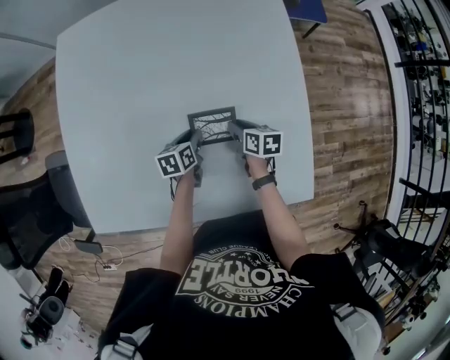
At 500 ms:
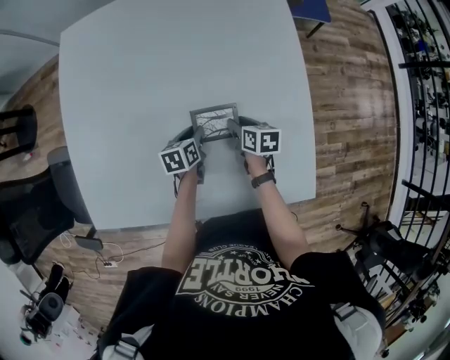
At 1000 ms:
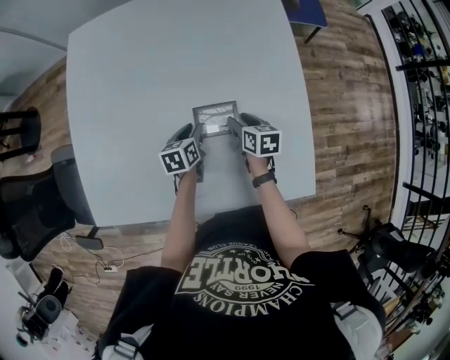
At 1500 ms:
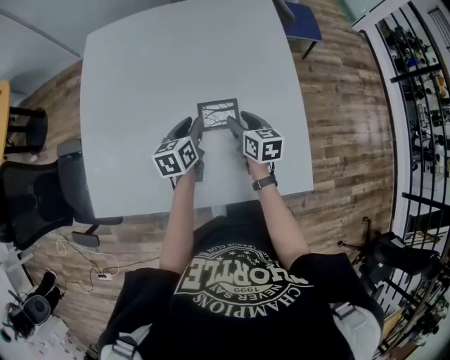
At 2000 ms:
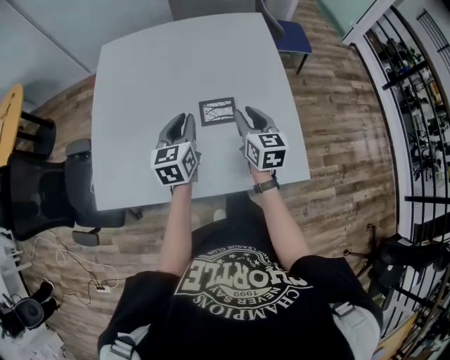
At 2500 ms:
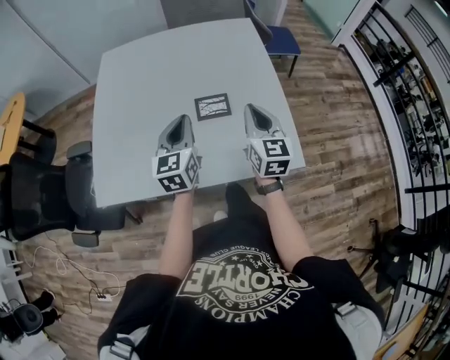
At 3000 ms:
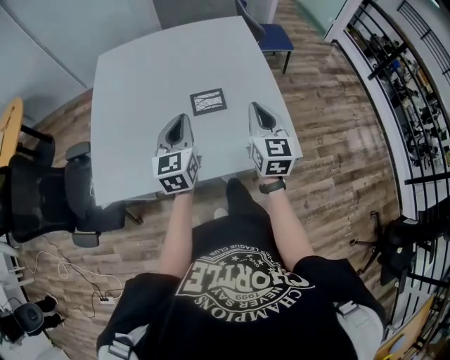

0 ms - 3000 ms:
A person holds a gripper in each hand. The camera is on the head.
0 ms - 1500 ms: Both grippers travel together upward, about 15 cm. The right gripper changes its angle by about 20 degrees, and opens.
1500 ms - 3000 ms: The left gripper goes about 20 cm backward and upward, rotates roughly 30 degrees, and closes up. The right gripper travels upward and backward by roughly 25 cm, rotates roughly 40 degrees, and closes its fingers.

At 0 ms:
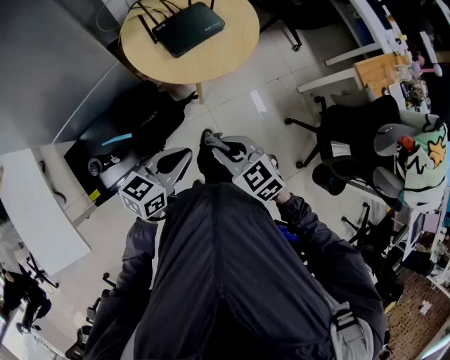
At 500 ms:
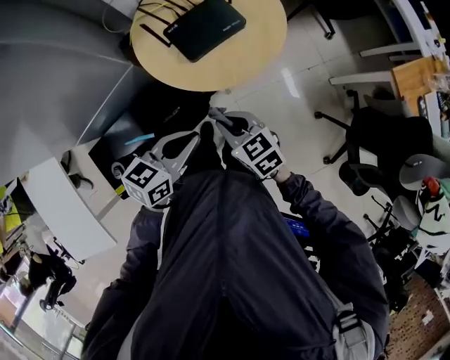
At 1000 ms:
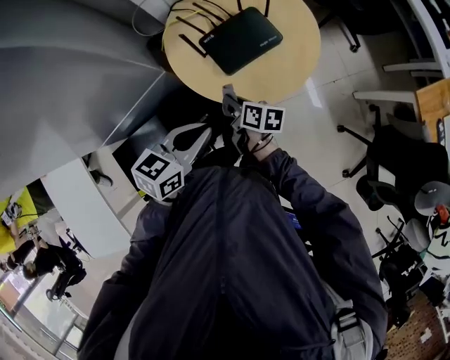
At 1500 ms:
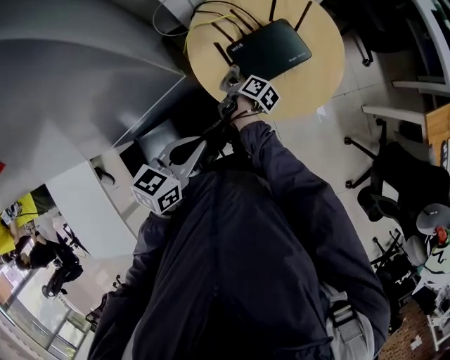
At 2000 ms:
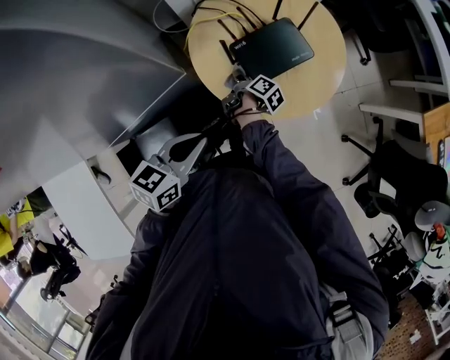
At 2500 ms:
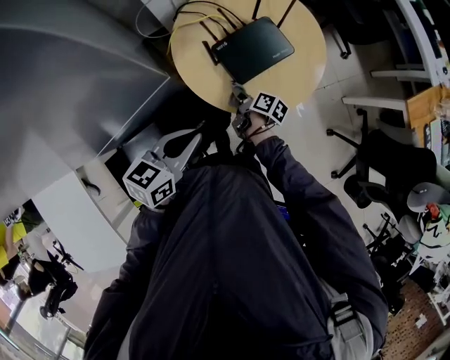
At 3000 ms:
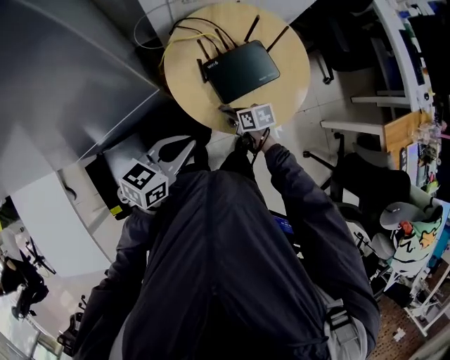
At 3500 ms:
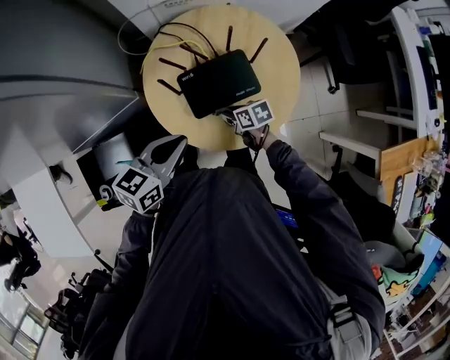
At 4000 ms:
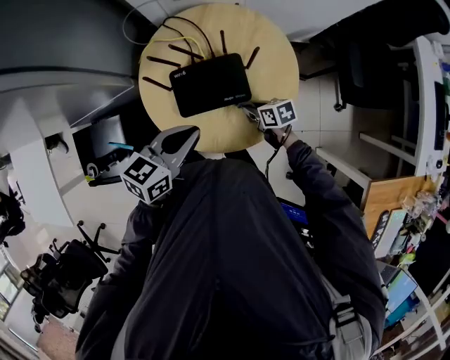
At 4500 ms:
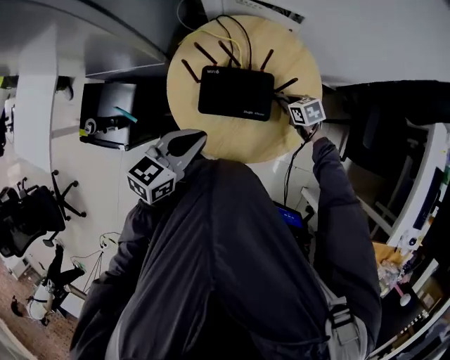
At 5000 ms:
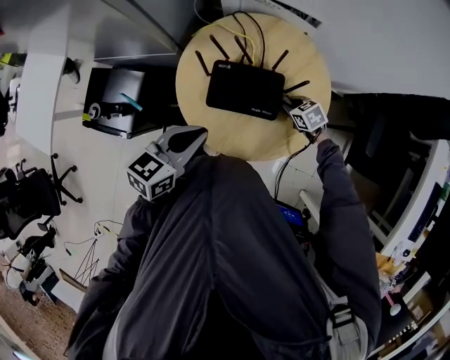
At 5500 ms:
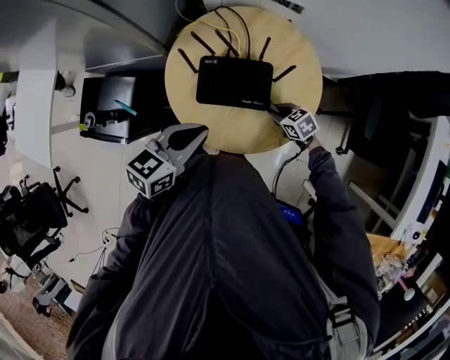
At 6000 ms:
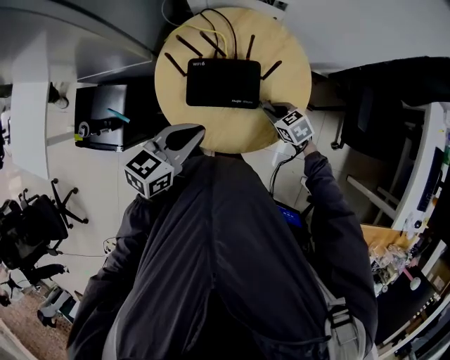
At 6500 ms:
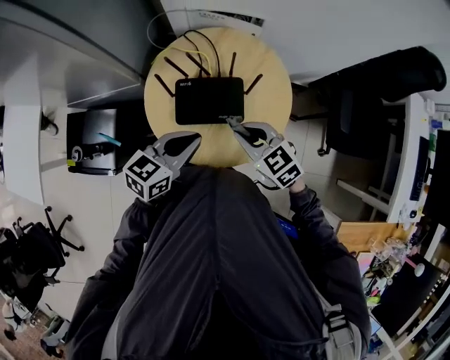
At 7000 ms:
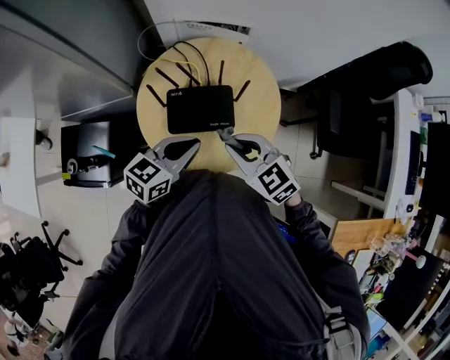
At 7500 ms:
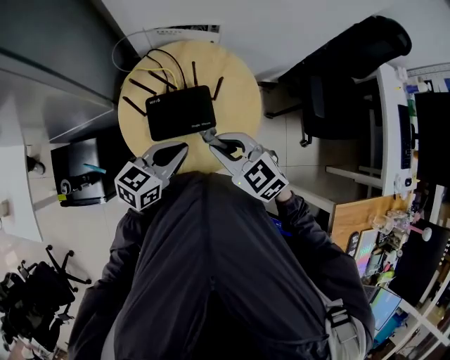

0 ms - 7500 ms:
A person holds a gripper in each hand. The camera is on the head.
0 ms - 2000 ms: The right gripper moves forward, downward and to the left, approximately 50 cm, and twists some 100 degrees clockwise, seen from behind; the left gripper travels forward and to the left by roughly 25 cm.
2000 ms - 4000 ms: The right gripper shifts by approximately 25 cm, and rotates roughly 90 degrees. The left gripper moves about 25 cm.
4000 ms - 5500 ms: The right gripper travels forward and back again, some 10 cm each way, and swivels some 40 degrees.
5500 ms - 7500 ms: The left gripper goes roughly 5 cm to the right; the right gripper travels upward by roughly 25 cm, and turns by about 30 degrees.

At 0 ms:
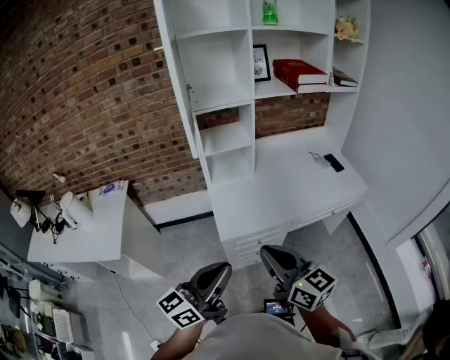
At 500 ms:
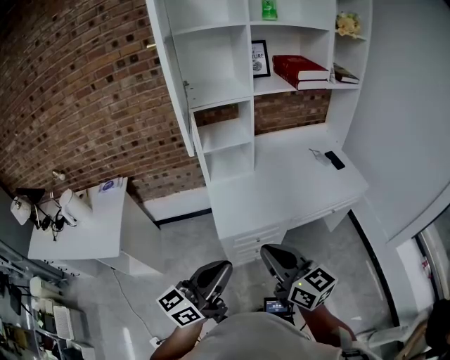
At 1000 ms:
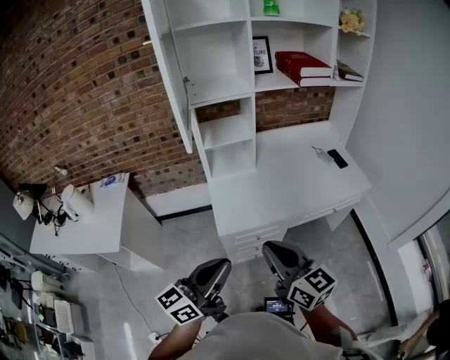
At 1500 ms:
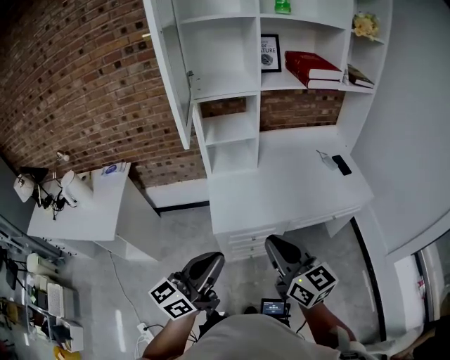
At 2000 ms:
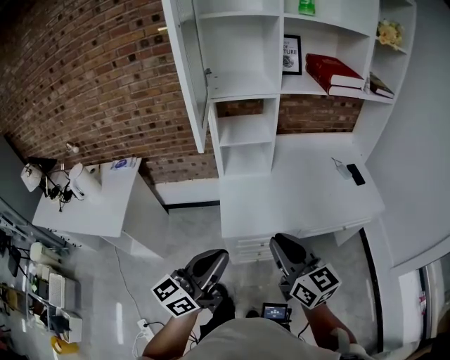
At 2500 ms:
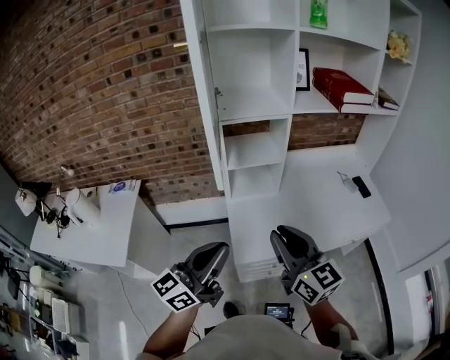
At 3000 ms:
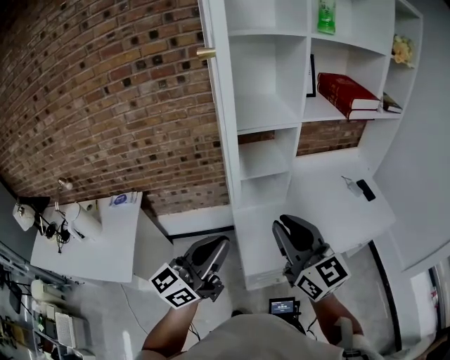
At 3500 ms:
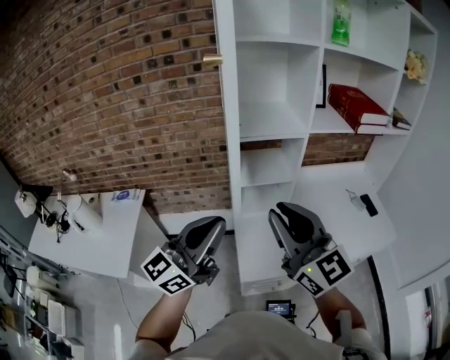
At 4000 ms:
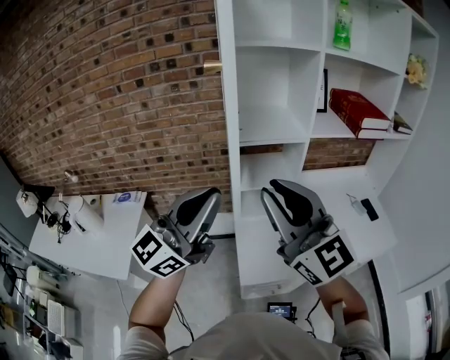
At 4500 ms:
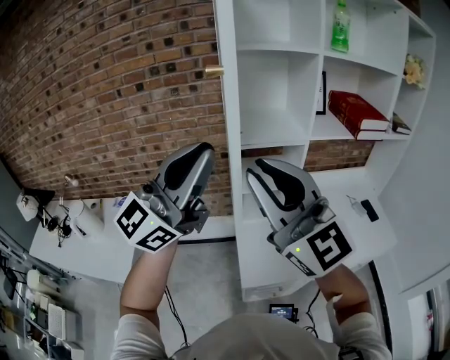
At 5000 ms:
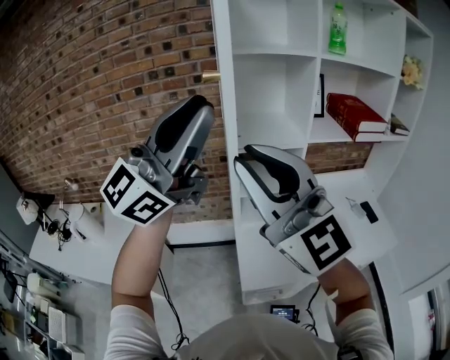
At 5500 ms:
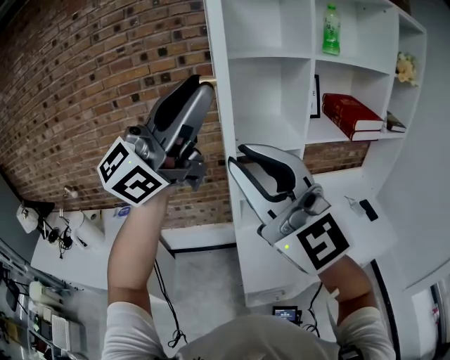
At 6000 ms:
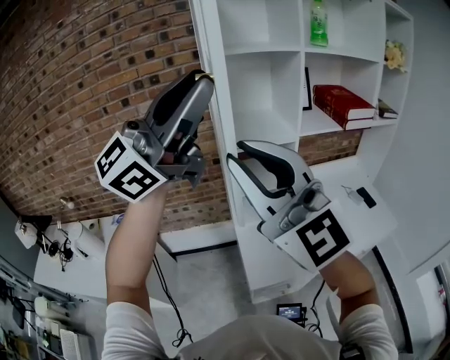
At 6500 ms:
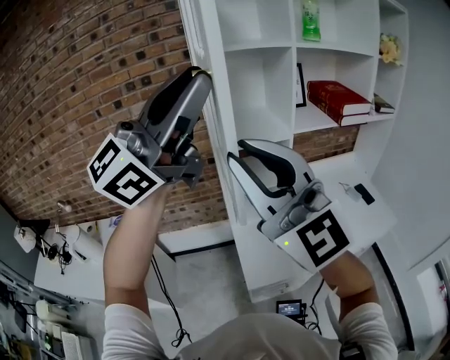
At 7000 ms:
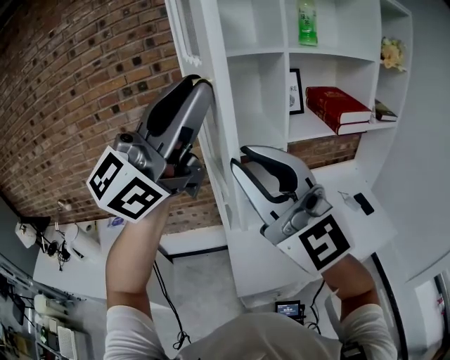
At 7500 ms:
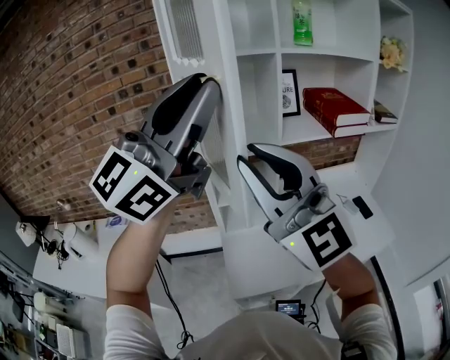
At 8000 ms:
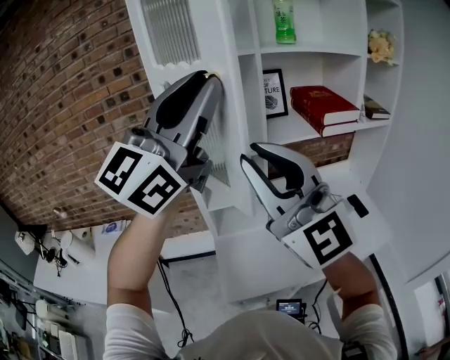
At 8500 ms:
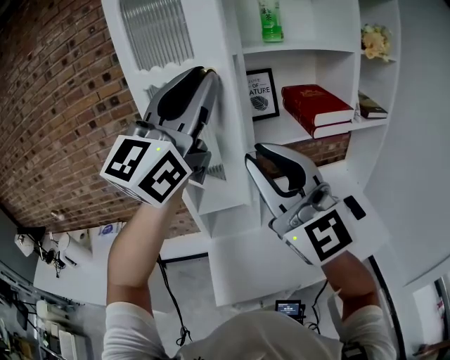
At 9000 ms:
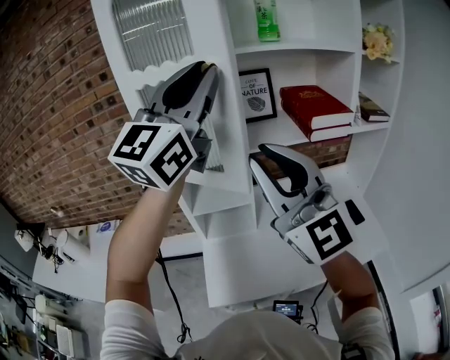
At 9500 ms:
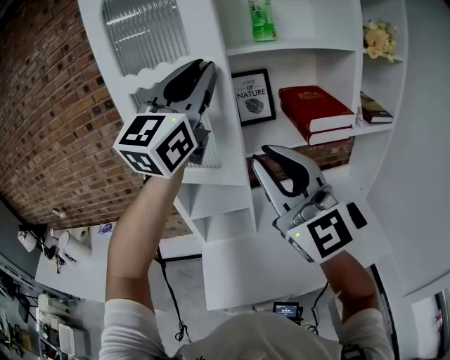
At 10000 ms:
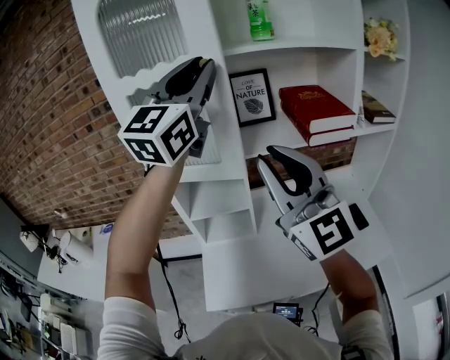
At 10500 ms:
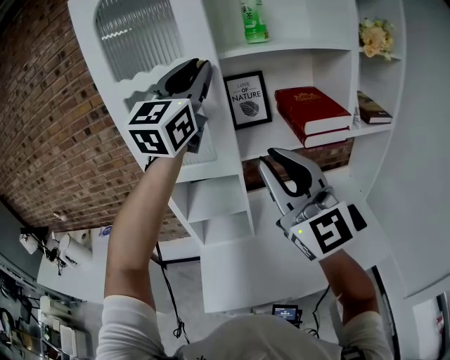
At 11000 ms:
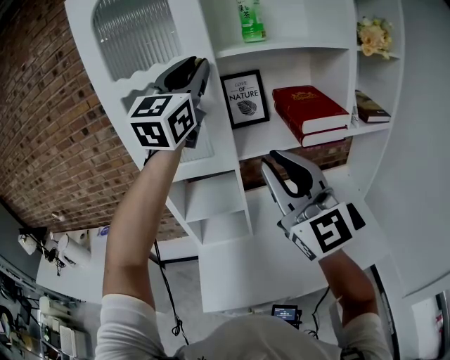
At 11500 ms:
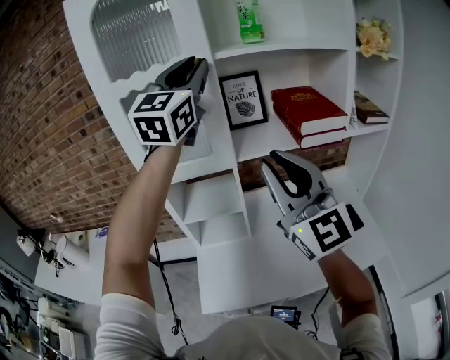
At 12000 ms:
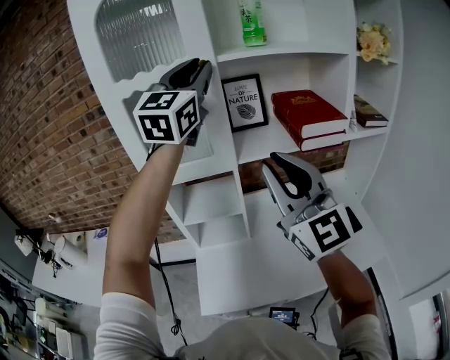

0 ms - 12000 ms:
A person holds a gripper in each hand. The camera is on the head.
0 ms - 2000 ms: Both grippers move forward, about 5 cm.
2000 ms - 4000 ms: The right gripper is displaced upward, forward and to the left by some 35 cm, and changes its angle by roughly 30 degrees. Meanwhile the left gripper goes approximately 35 cm forward, upward and to the left, and rotates some 30 degrees.
4000 ms - 6000 ms: The left gripper heads upward, covering approximately 20 cm. Meanwhile the right gripper moves upward and to the left, roughly 10 cm.
6000 ms - 8000 ms: The grippers both shift to the right and forward by approximately 20 cm.
8000 ms - 10000 ms: The right gripper moves to the right and forward, roughly 15 cm. Meanwhile the left gripper heads forward and to the right, covering about 20 cm.
10000 ms - 12000 ms: The left gripper is displaced forward by roughly 5 cm.

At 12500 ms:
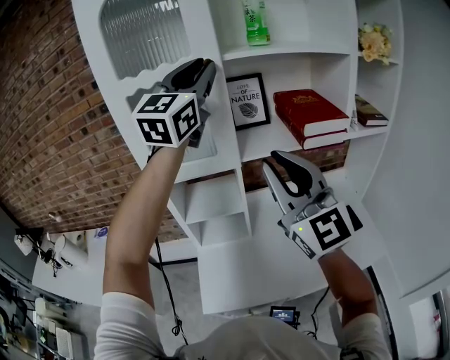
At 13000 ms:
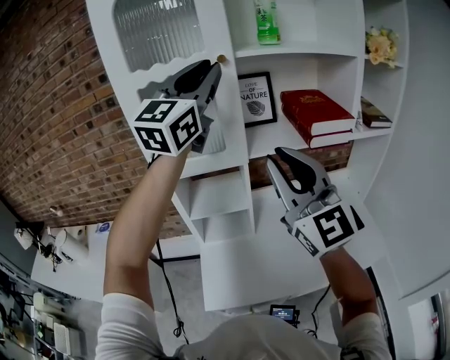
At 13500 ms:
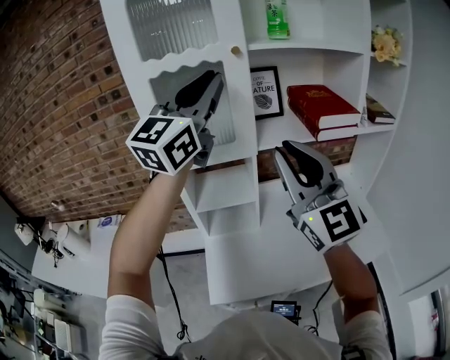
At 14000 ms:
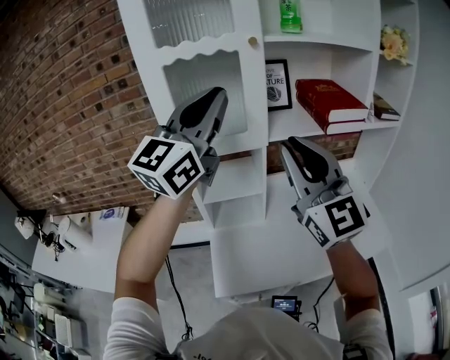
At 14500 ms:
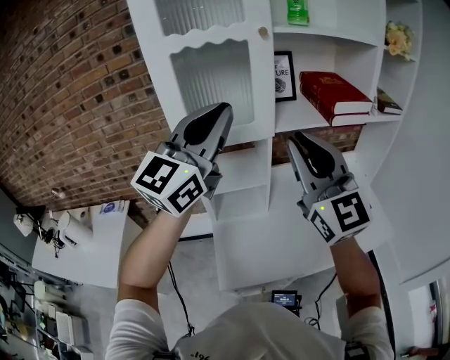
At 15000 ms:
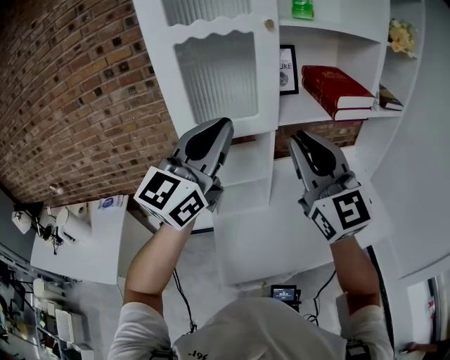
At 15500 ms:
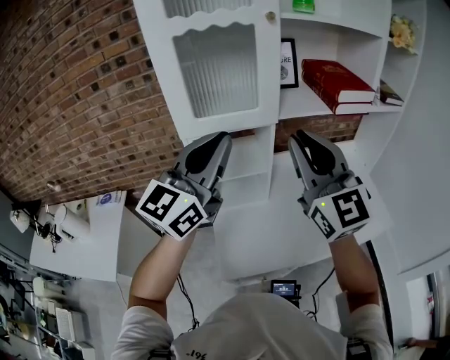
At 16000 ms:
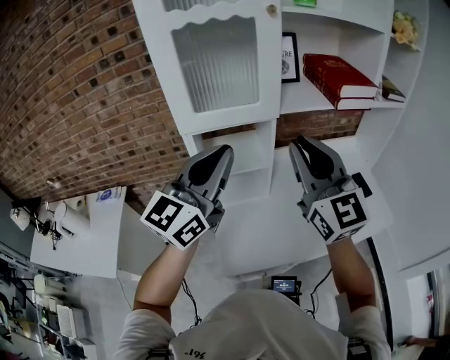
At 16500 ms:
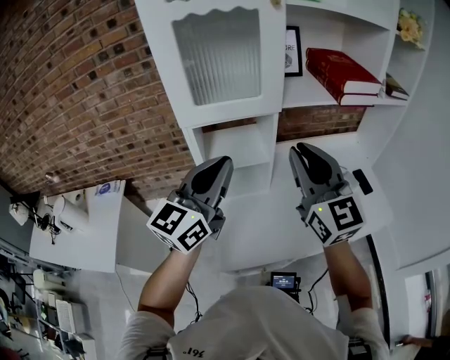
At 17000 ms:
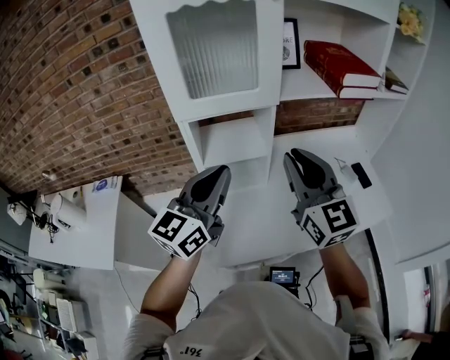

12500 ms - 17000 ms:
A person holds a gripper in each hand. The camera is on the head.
12500 ms - 14500 ms: The left gripper shifts some 20 cm backward, downward and to the left. The right gripper travels to the left by about 5 cm.
14500 ms - 17000 ms: The right gripper is displaced downward by roughly 15 cm; the left gripper travels downward by approximately 20 cm, and turns by some 20 degrees.
